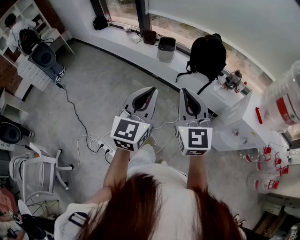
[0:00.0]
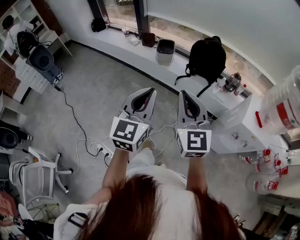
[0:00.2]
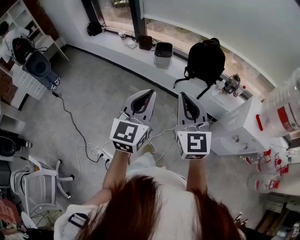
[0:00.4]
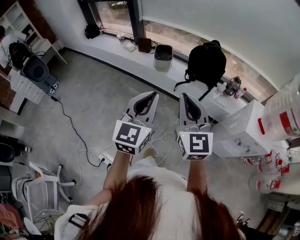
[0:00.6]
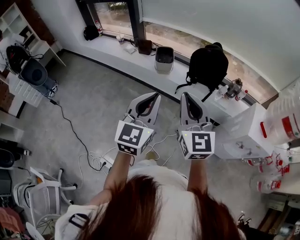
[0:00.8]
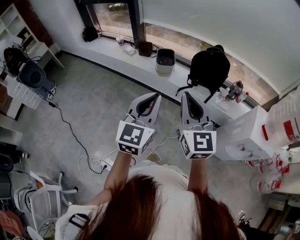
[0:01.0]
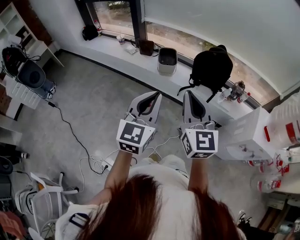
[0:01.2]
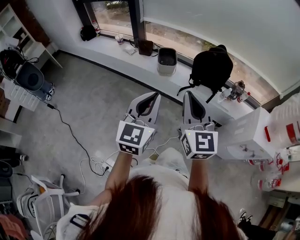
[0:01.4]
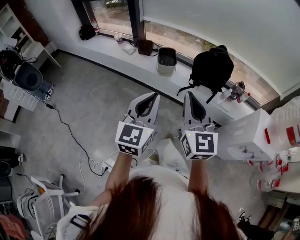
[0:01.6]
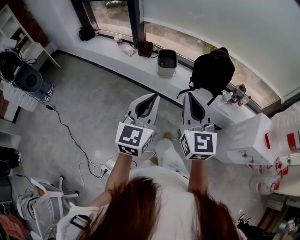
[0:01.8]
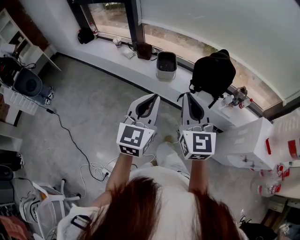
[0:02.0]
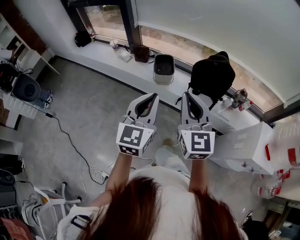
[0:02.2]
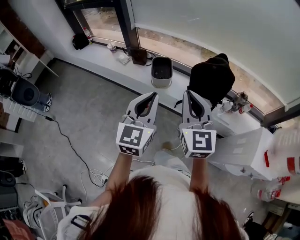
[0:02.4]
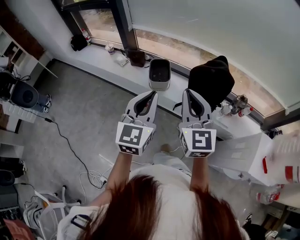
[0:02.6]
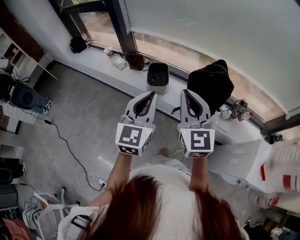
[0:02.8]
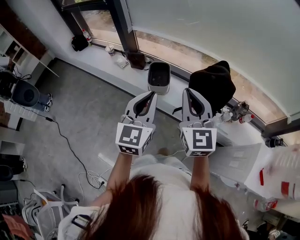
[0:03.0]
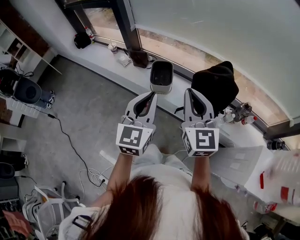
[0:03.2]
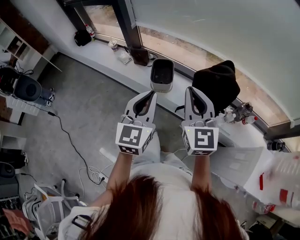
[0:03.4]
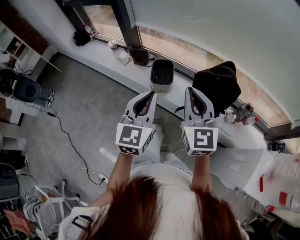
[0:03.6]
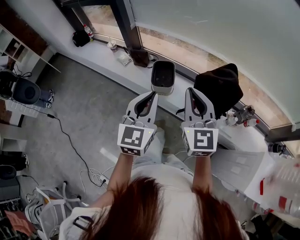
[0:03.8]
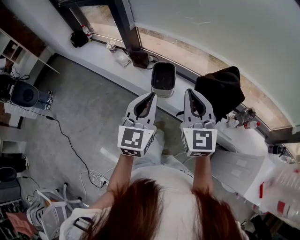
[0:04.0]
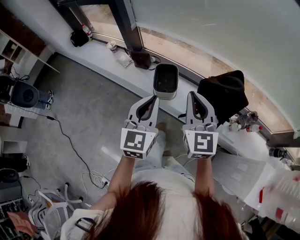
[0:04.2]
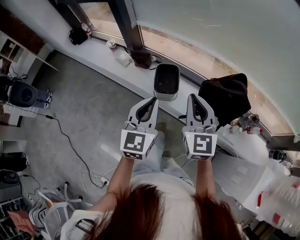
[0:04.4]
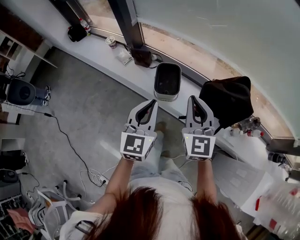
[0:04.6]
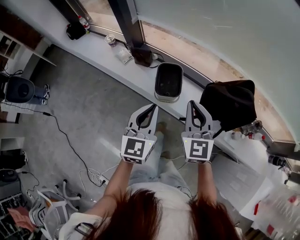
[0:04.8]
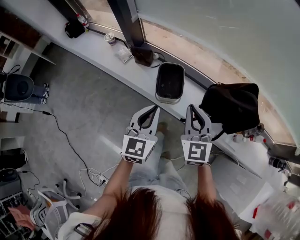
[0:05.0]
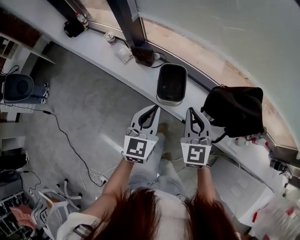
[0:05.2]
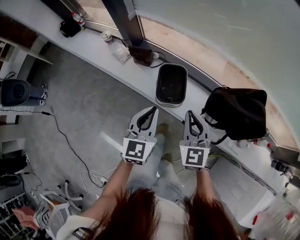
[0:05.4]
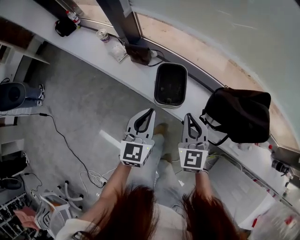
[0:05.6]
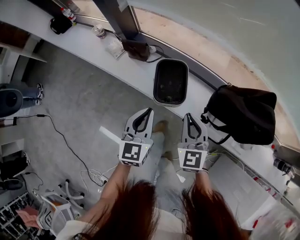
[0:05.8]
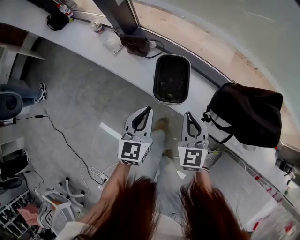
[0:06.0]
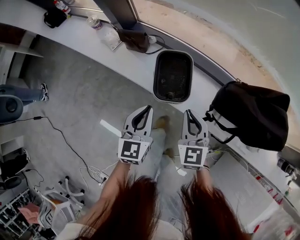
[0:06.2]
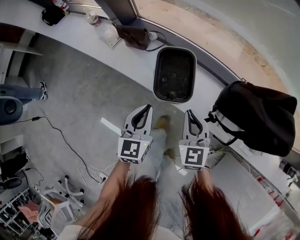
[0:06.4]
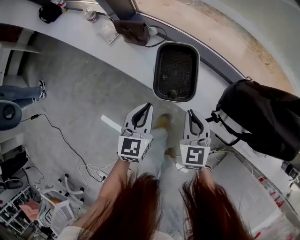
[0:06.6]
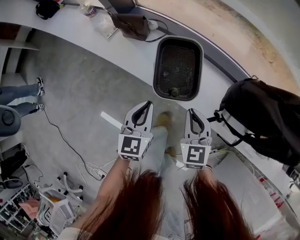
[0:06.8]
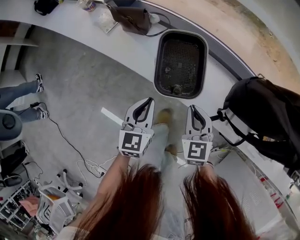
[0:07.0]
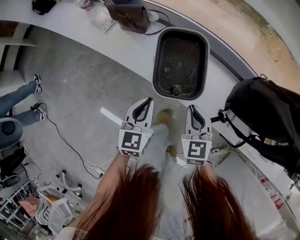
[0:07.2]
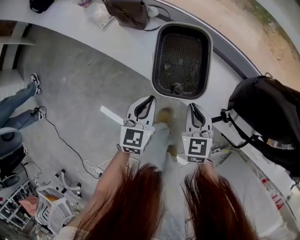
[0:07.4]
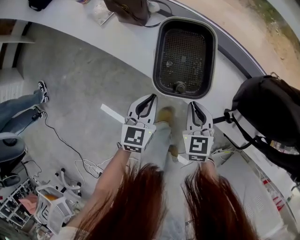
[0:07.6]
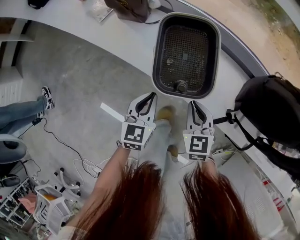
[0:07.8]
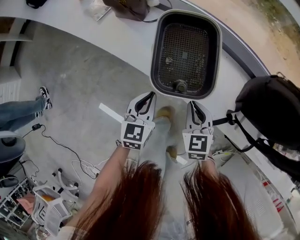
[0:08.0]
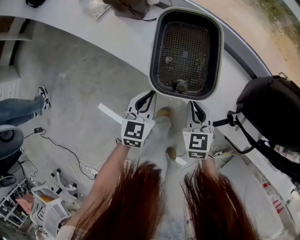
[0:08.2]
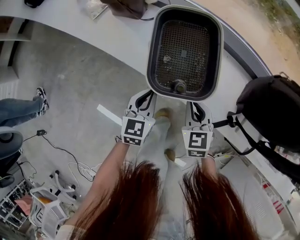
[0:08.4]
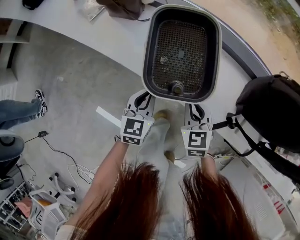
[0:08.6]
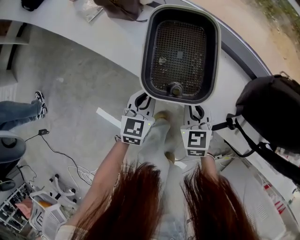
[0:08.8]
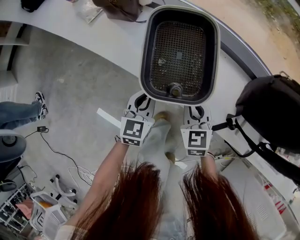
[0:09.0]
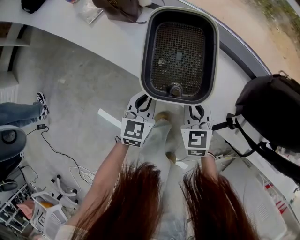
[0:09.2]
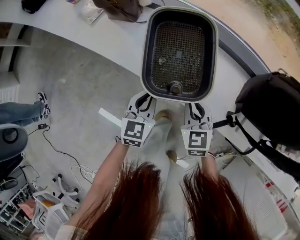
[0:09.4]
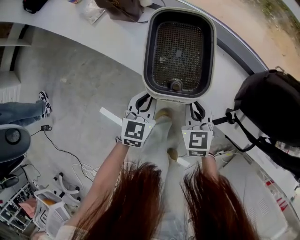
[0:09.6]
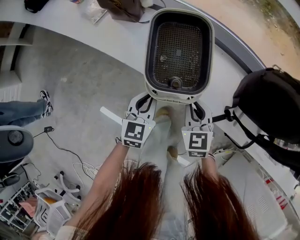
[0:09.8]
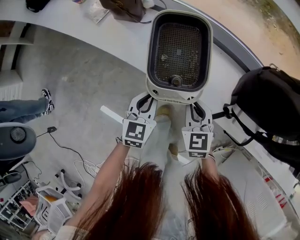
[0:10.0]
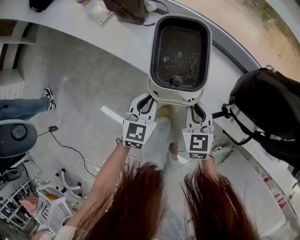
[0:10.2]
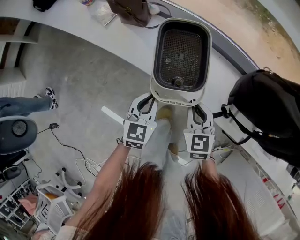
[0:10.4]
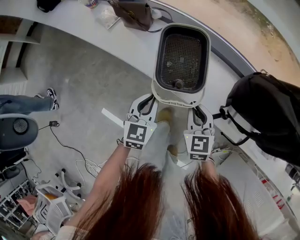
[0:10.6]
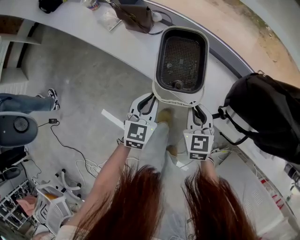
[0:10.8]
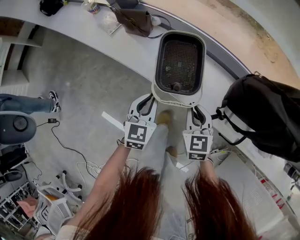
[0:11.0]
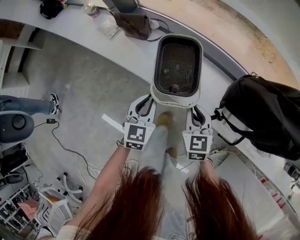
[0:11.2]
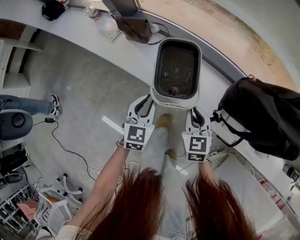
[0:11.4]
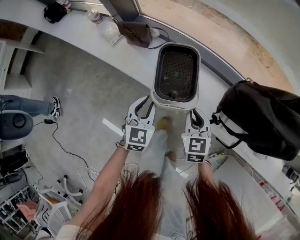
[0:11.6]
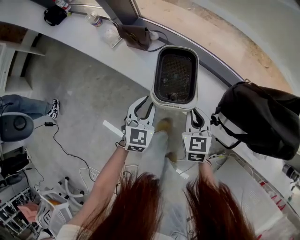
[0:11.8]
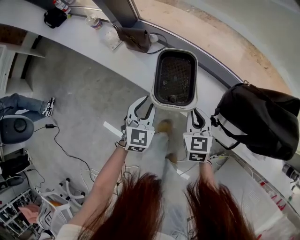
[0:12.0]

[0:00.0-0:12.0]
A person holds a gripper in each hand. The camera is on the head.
0:00.0 to 0:01.6: Both grippers move forward and to the left, about 20 cm.
0:01.6 to 0:03.0: Both grippers travel together forward, roughly 25 cm.
0:03.0 to 0:04.4: The two grippers go some 15 cm forward and downward.
0:04.4 to 0:06.0: The right gripper is displaced downward by roughly 25 cm, while the left gripper heads downward and forward, covering roughly 30 cm.
0:06.0 to 0:07.6: Both grippers travel together downward, roughly 25 cm.
0:07.6 to 0:09.0: Both grippers move downward, about 10 cm.
0:09.0 to 0:10.4: The two grippers go some 10 cm upward.
0:10.4 to 0:12.0: The two grippers go some 10 cm upward.

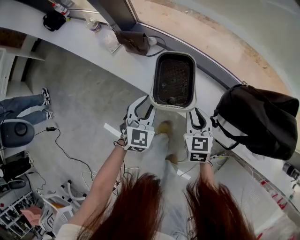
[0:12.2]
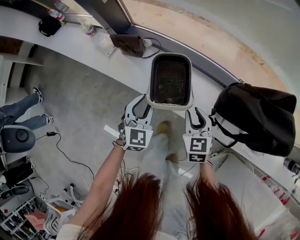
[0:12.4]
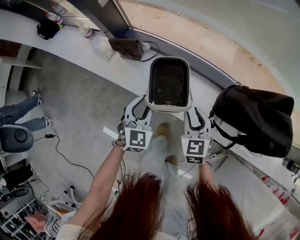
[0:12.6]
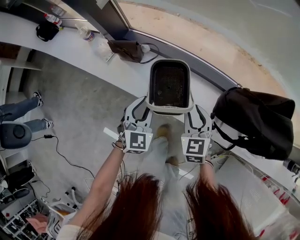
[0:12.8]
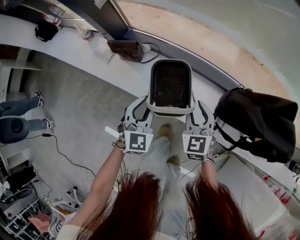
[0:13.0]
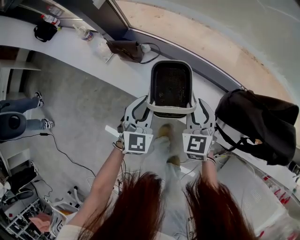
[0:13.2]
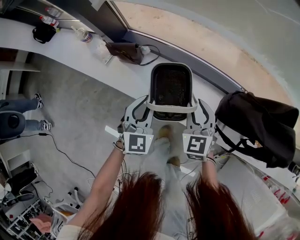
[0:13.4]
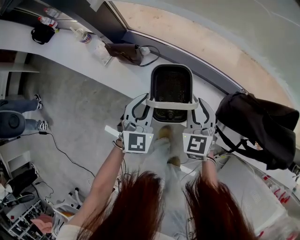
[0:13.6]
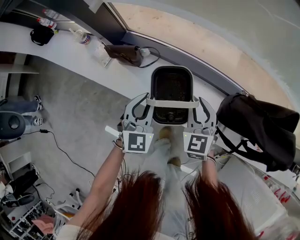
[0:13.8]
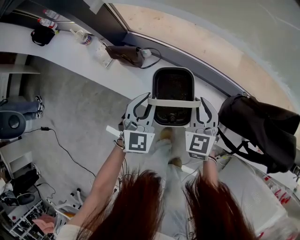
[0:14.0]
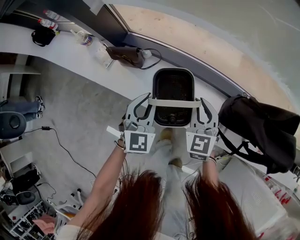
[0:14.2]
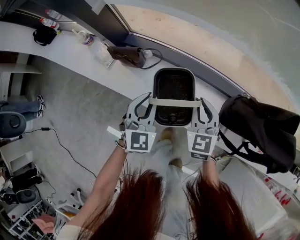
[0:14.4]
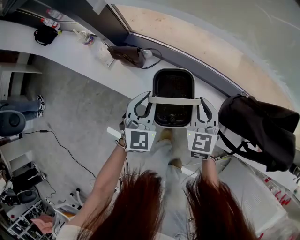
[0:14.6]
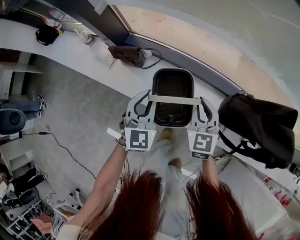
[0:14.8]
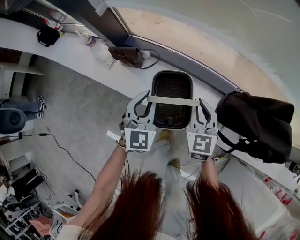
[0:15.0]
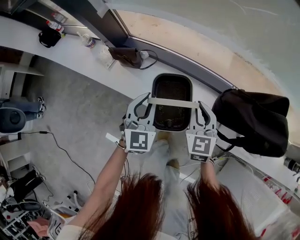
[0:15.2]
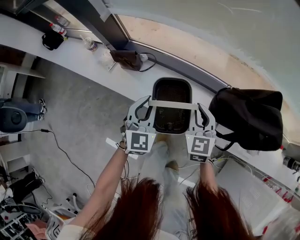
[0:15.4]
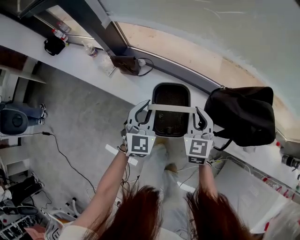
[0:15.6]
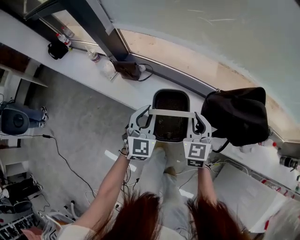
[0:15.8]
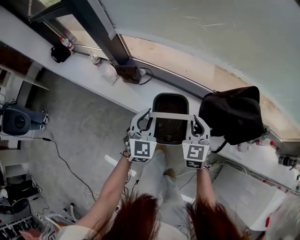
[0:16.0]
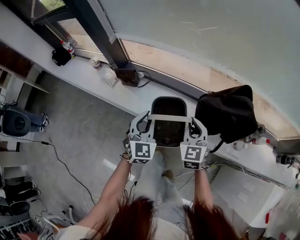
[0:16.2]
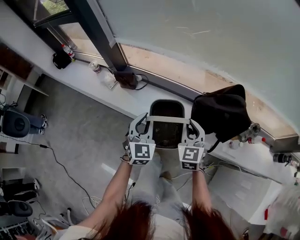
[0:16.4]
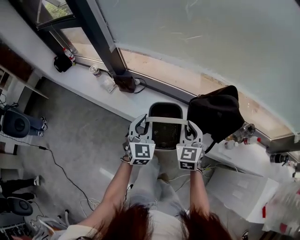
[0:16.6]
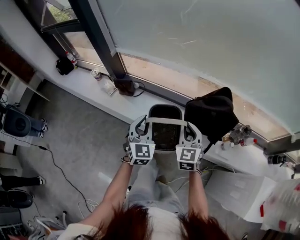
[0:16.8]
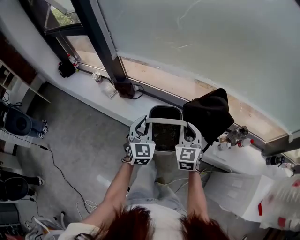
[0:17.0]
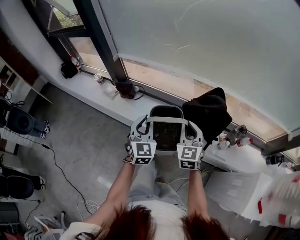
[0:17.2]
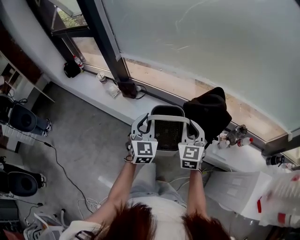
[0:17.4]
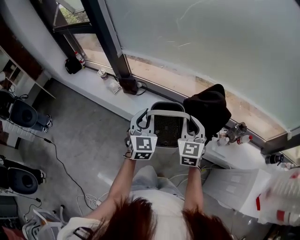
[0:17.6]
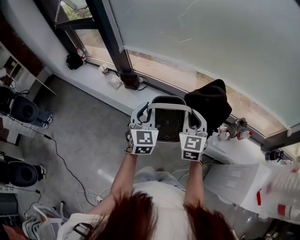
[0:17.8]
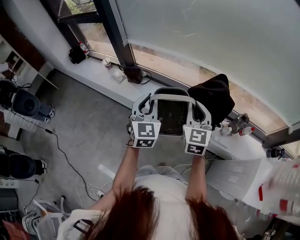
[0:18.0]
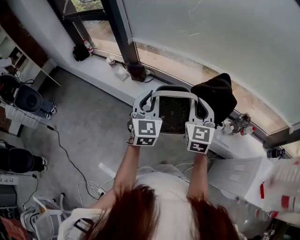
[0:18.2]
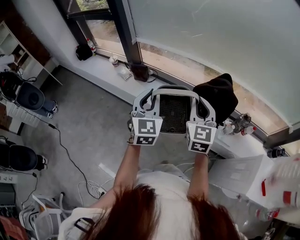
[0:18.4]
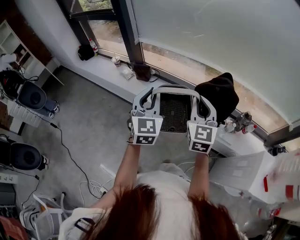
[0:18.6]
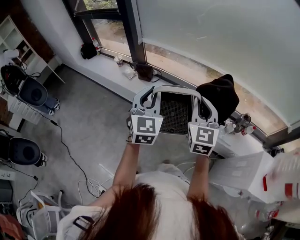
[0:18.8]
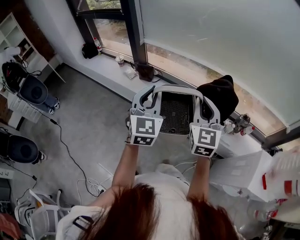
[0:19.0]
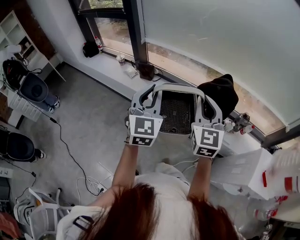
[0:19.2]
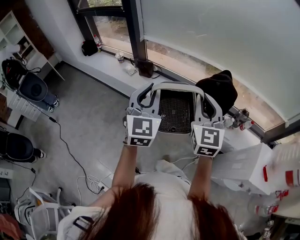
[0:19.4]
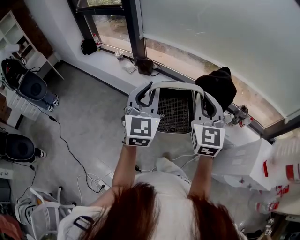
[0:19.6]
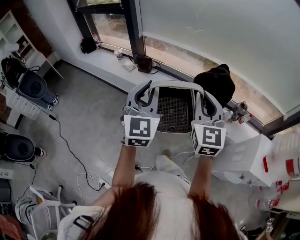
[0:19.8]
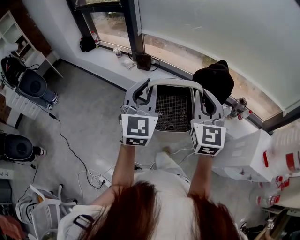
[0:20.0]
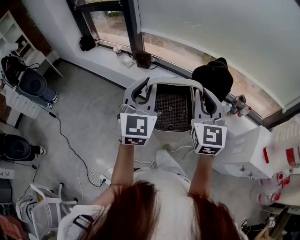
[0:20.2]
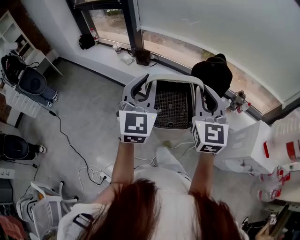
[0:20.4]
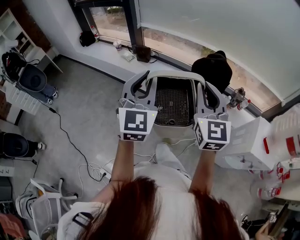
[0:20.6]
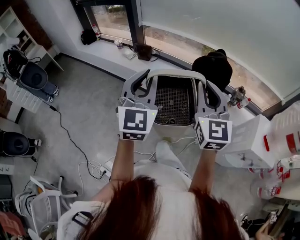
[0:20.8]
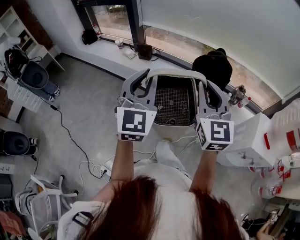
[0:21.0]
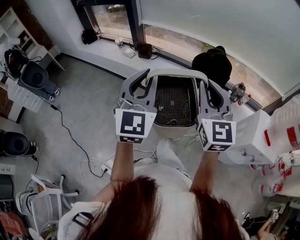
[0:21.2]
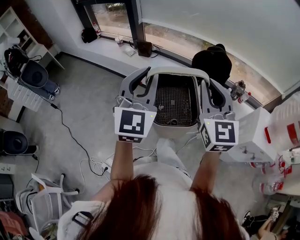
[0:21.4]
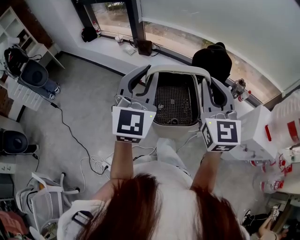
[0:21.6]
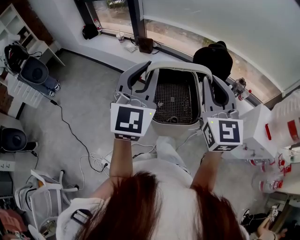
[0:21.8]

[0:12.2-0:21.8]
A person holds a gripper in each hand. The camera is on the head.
0:12.2 to 0:13.8: The two grippers go about 10 cm forward.
0:13.8 to 0:15.4: The left gripper travels upward and backward by about 10 cm, while the right gripper heads backward and upward, covering approximately 10 cm.
0:15.4 to 0:17.0: Both grippers travel together upward, backward and to the right, some 25 cm.
0:17.0 to 0:18.6: Both grippers move upward and backward, roughly 20 cm.
0:18.6 to 0:20.2: Both grippers travel together backward and upward, some 20 cm.
0:20.2 to 0:21.8: Both grippers travel together backward, some 15 cm.

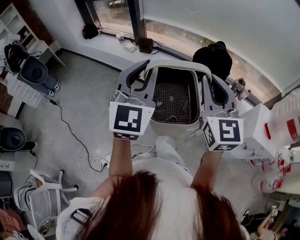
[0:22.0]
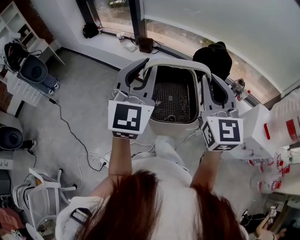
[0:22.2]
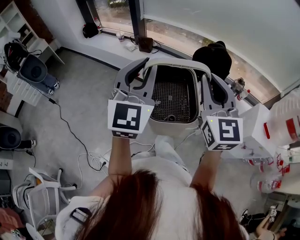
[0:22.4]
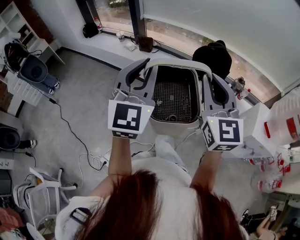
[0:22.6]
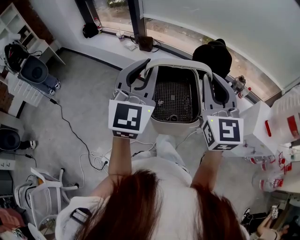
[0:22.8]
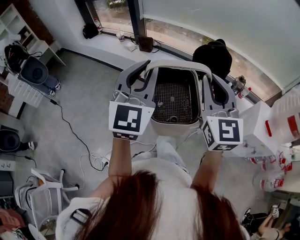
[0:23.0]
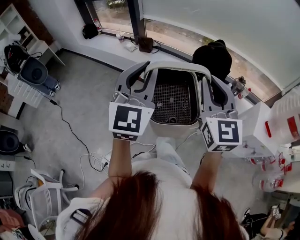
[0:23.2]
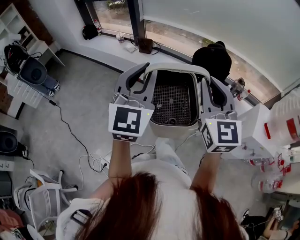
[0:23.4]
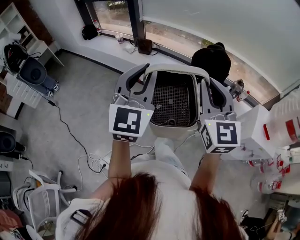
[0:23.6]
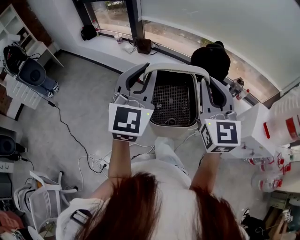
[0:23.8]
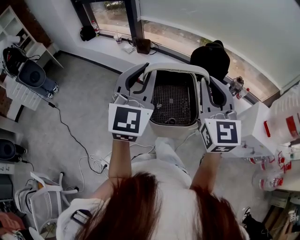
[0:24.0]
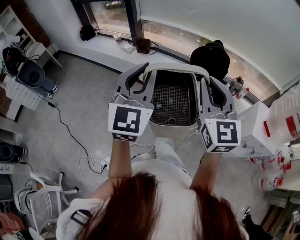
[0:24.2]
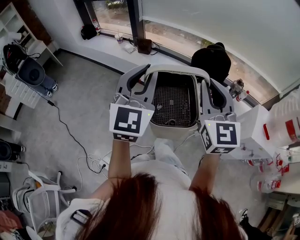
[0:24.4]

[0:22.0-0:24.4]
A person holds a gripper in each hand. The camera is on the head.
0:22.0 to 0:23.2: Neither gripper changes place.
0:23.2 to 0:24.4: Neither gripper changes place.
